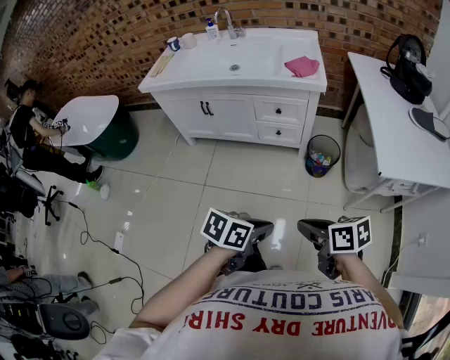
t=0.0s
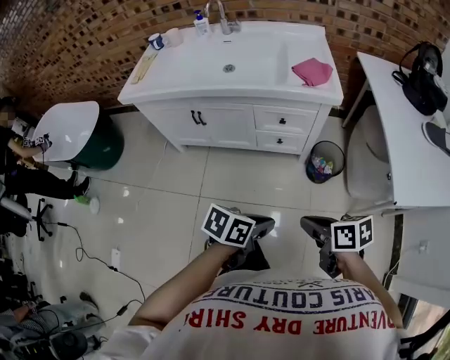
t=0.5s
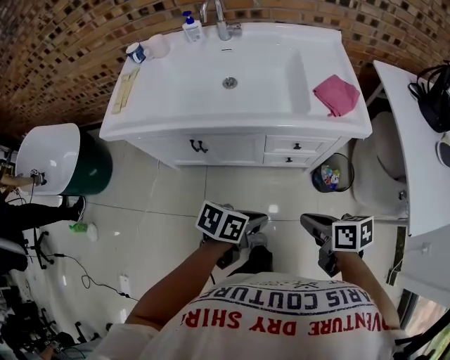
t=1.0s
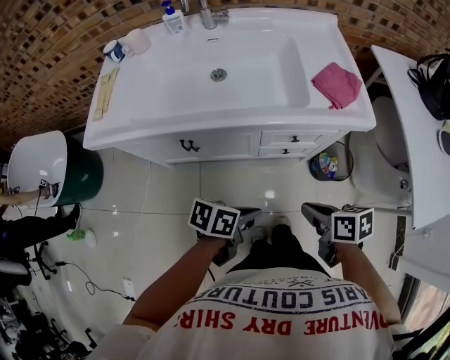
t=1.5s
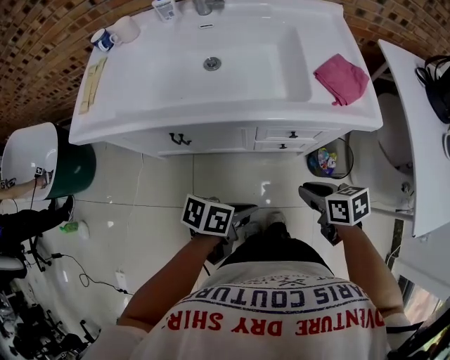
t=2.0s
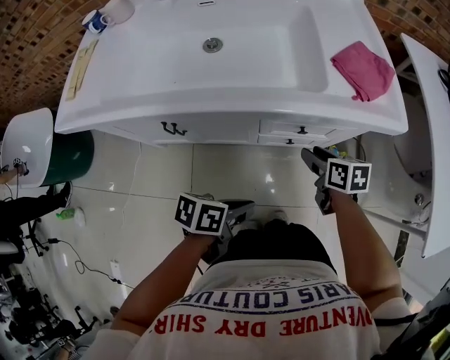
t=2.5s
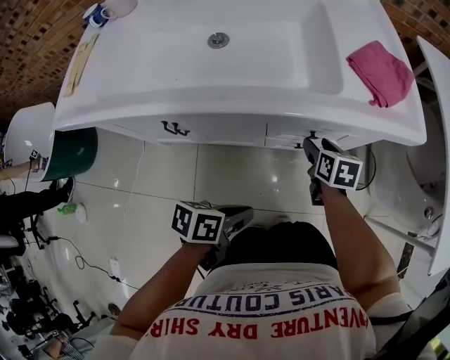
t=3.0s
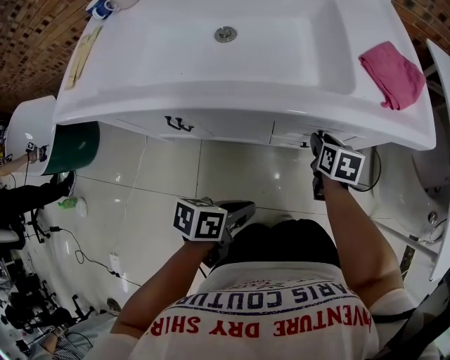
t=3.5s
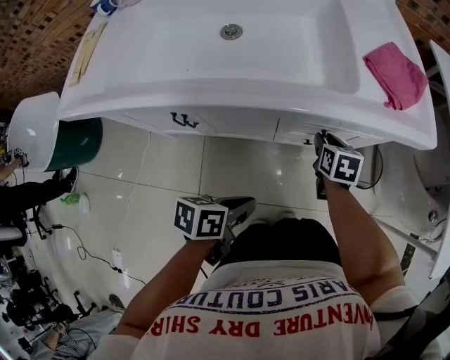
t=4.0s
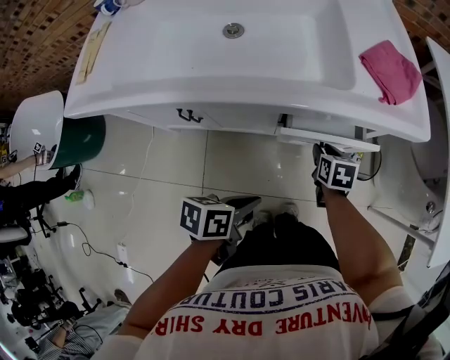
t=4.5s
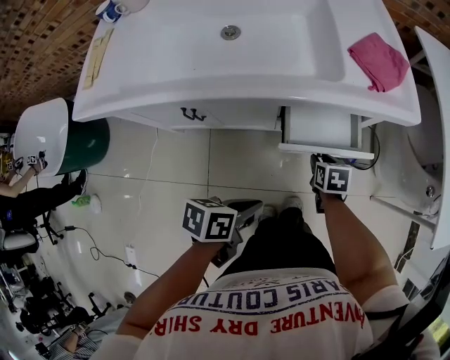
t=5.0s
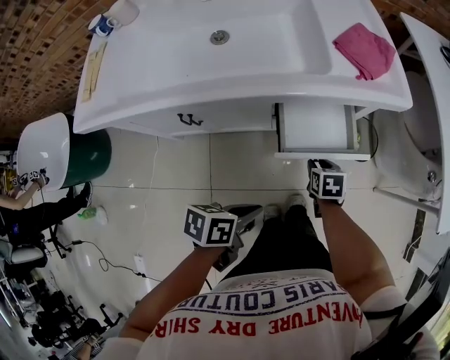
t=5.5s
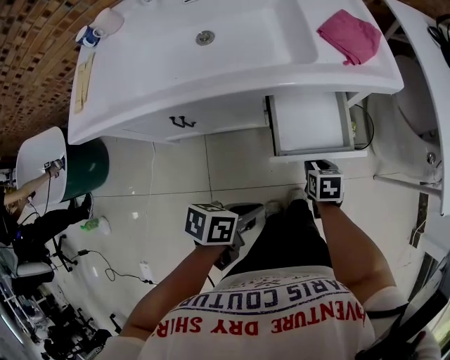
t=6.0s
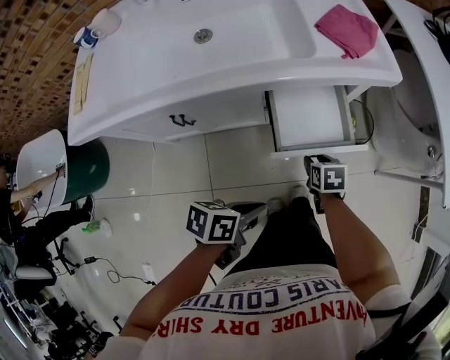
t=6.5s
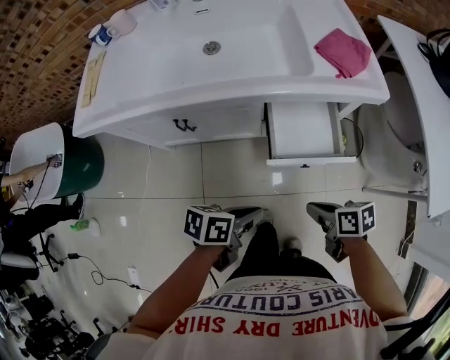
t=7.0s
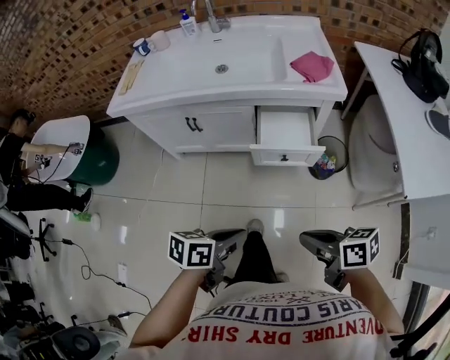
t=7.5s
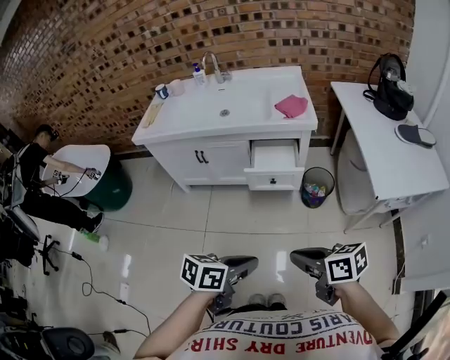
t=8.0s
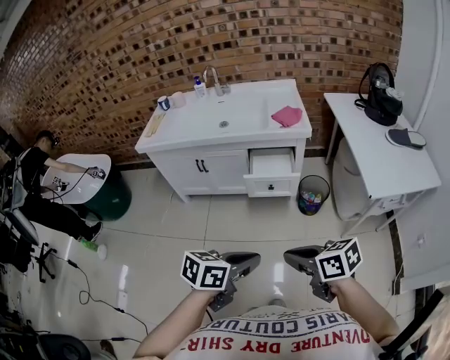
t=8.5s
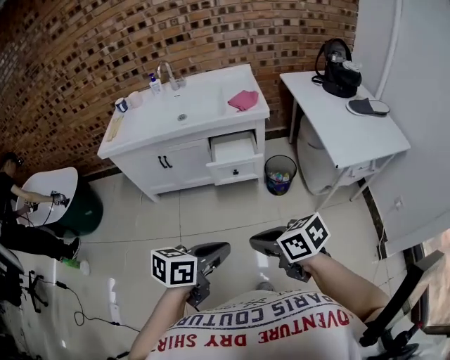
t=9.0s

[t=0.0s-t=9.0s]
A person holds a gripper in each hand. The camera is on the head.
t=0.0s to t=2.0s: The pair of grippers is taken some 50 cm.
t=2.0s to t=4.5s: The left gripper heads downward, covering approximately 5 cm. The right gripper heads downward, covering roughly 20 cm, turns by some 30 degrees, and opens and closes again.
t=4.5s to t=7.0s: The left gripper changes place by roughly 10 cm; the right gripper ends up about 25 cm from where it was, turns by some 30 degrees, and closes its fingers.
t=7.0s to t=9.0s: The right gripper shifts by approximately 50 cm, and turns by approximately 30 degrees. Meanwhile the left gripper moves some 50 cm, and turns by about 30 degrees.

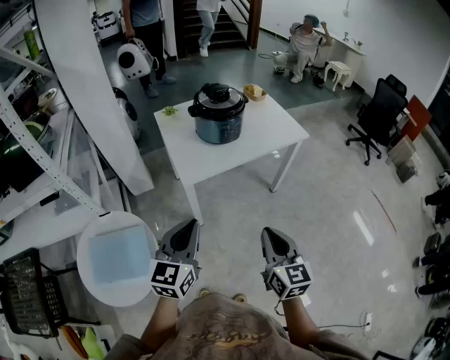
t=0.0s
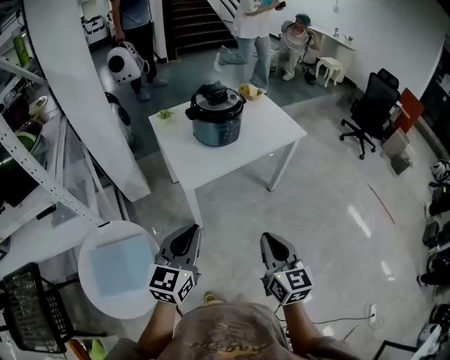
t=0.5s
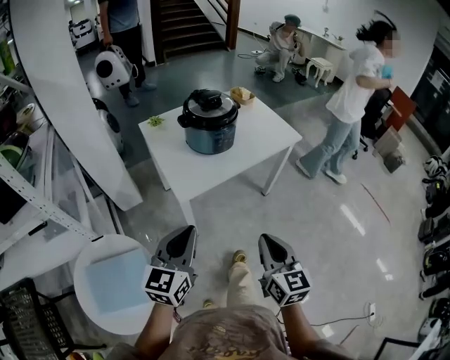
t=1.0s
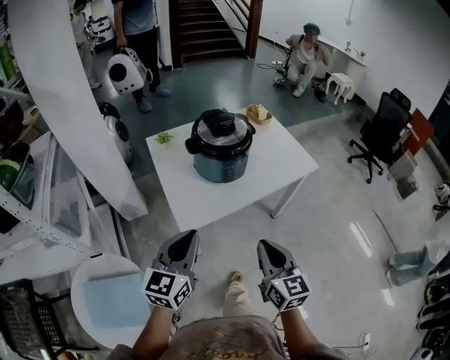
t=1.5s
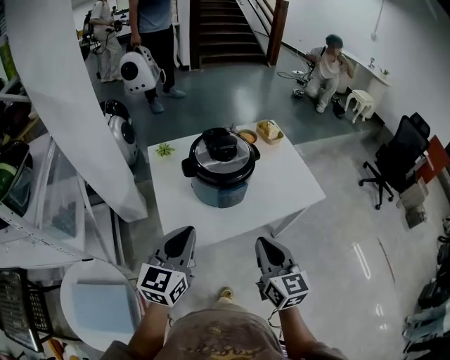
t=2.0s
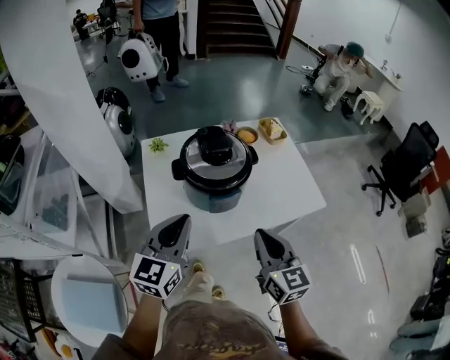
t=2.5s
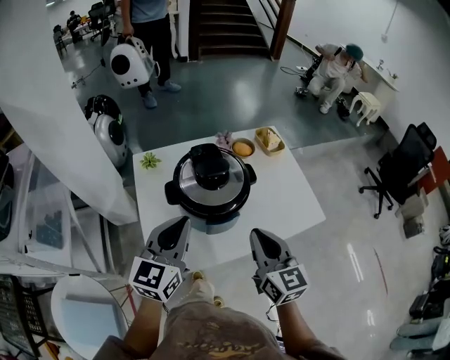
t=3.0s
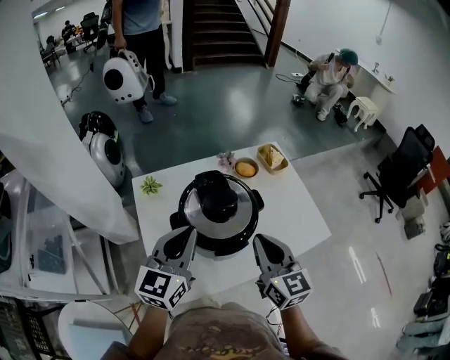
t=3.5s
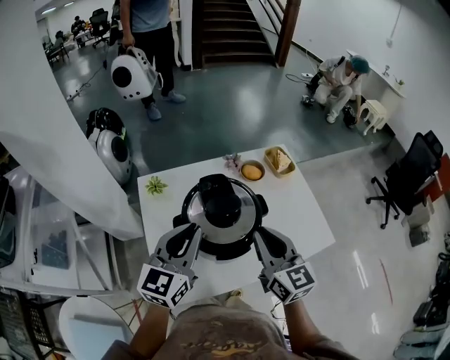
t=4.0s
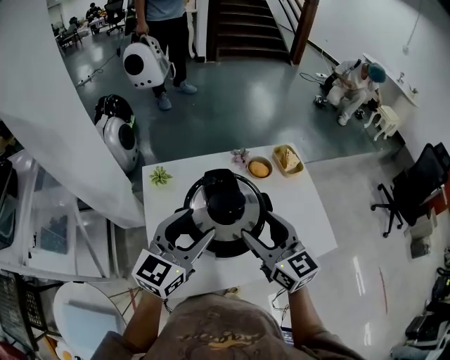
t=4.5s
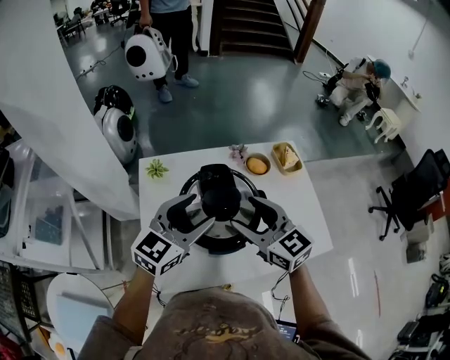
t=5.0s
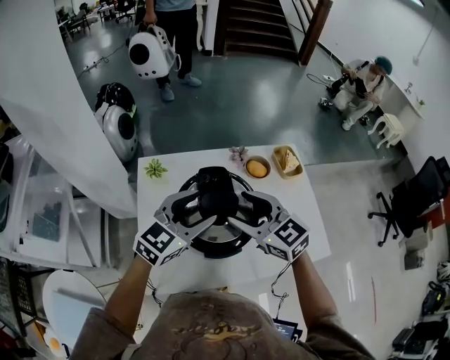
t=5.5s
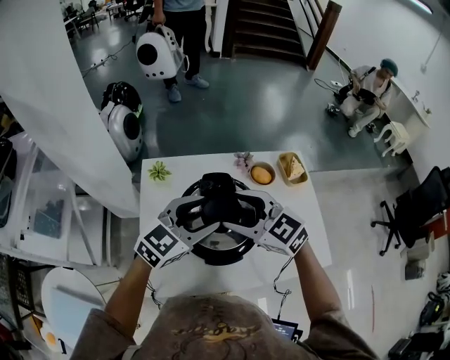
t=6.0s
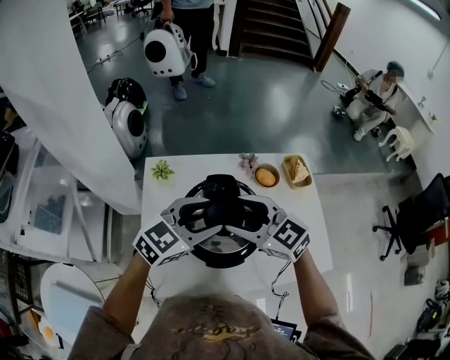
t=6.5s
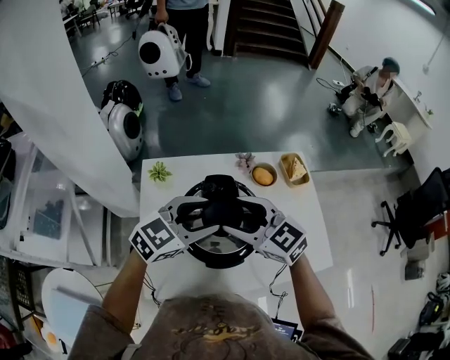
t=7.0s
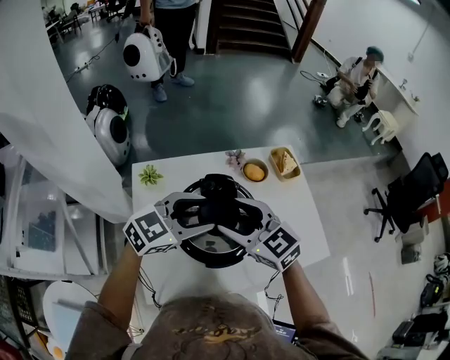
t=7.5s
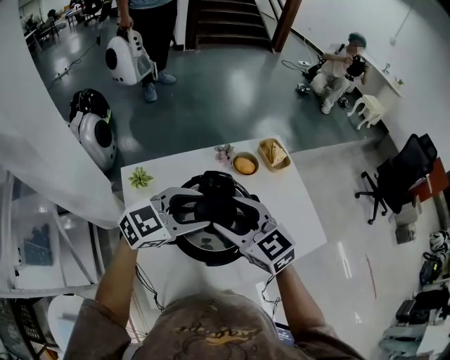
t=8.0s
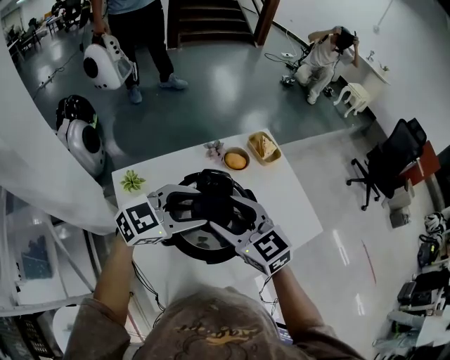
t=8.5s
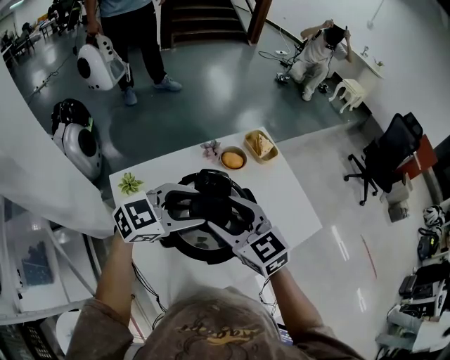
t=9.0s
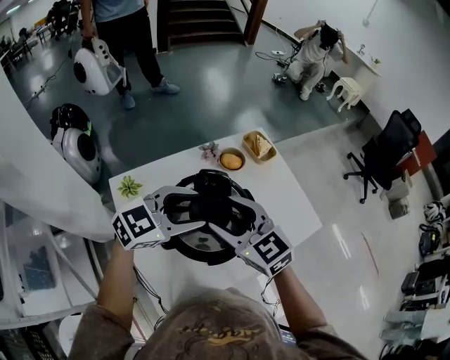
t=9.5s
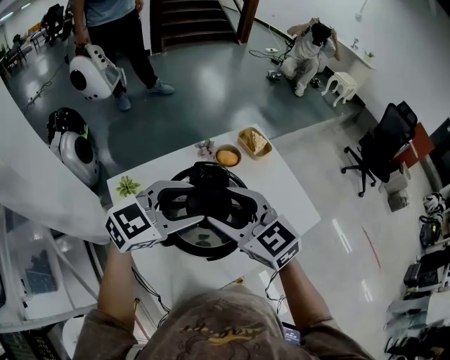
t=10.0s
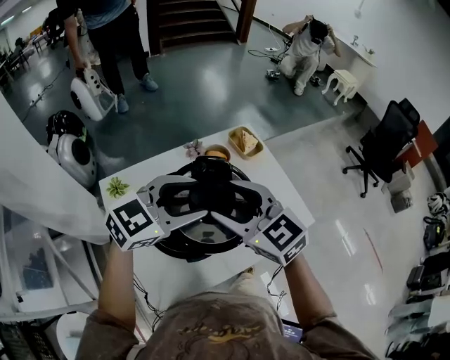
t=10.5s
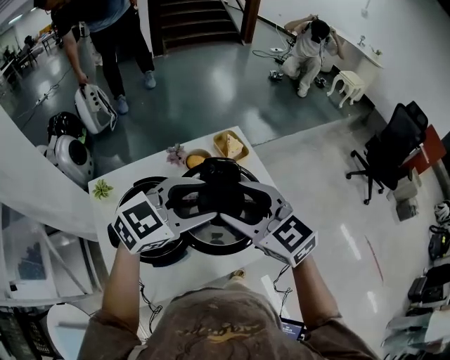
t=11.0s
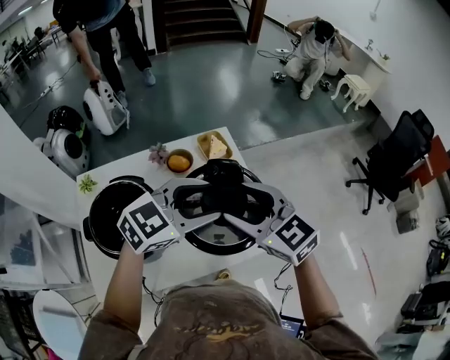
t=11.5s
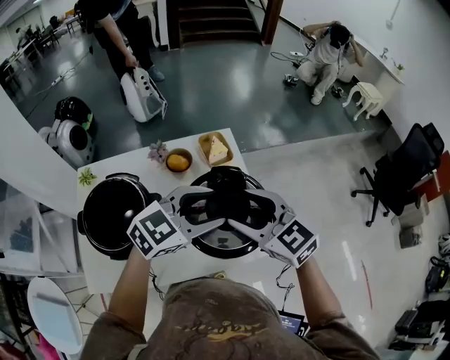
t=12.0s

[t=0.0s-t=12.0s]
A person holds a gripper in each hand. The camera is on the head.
t=0.0s to t=2.0s: Both grippers travel together forward, some 30 cm.
t=2.0s to t=4.0s: Both grippers move forward, roughly 25 cm.
t=4.0s to t=6.0s: The right gripper travels forward and to the left by roughly 10 cm, turns by approximately 50 degrees, and opens up; the left gripper goes roughly 10 cm to the right and forward, turns by approximately 20 degrees, and opens.
t=6.0s to t=8.0s: The right gripper rotates roughly 30 degrees. The left gripper changes its angle by some 30 degrees.
t=8.0s to t=10.0s: The grippers move only a little.
t=10.0s to t=12.0s: The grippers both shift to the right by about 30 cm.

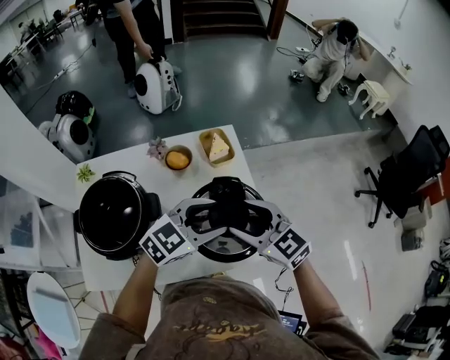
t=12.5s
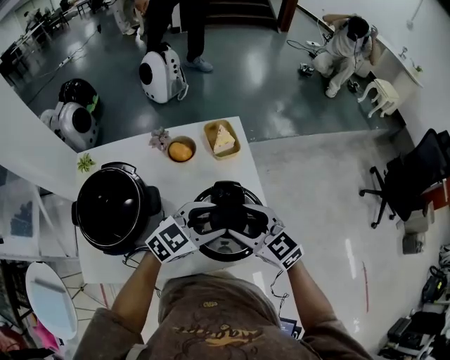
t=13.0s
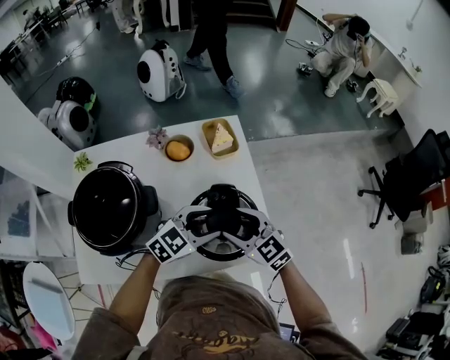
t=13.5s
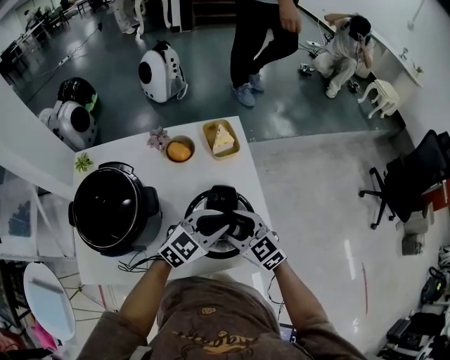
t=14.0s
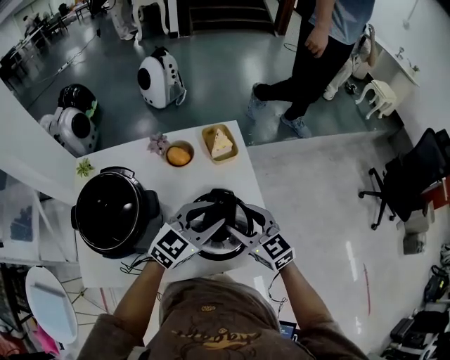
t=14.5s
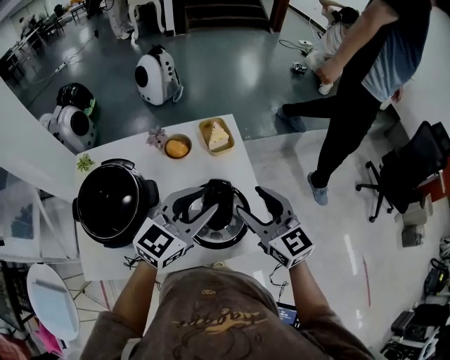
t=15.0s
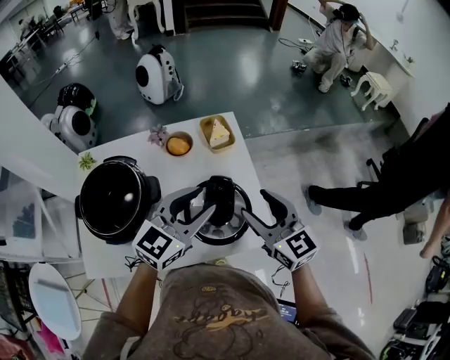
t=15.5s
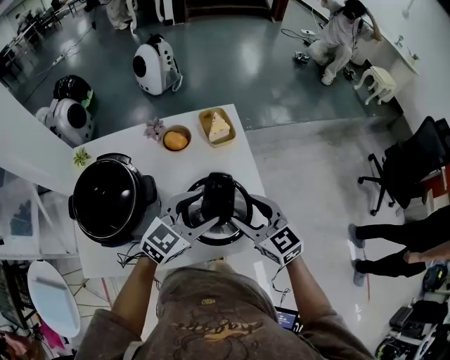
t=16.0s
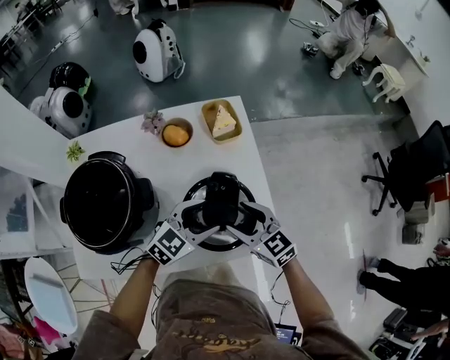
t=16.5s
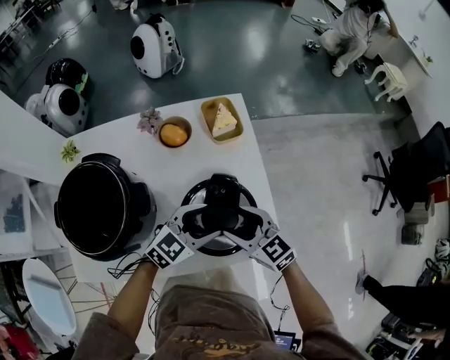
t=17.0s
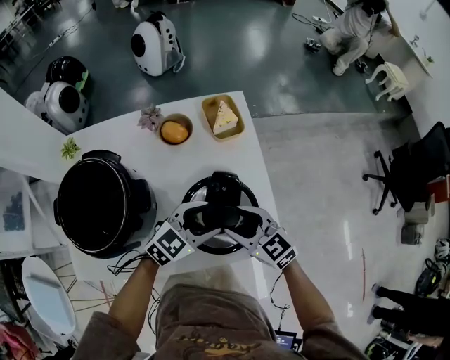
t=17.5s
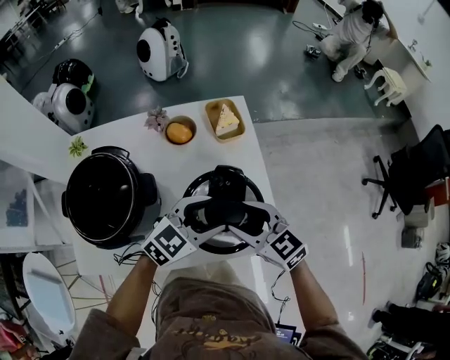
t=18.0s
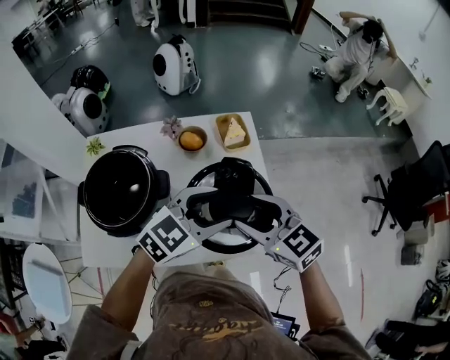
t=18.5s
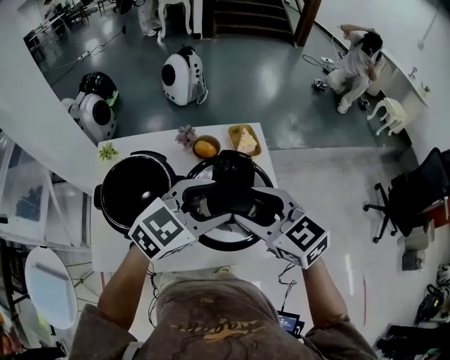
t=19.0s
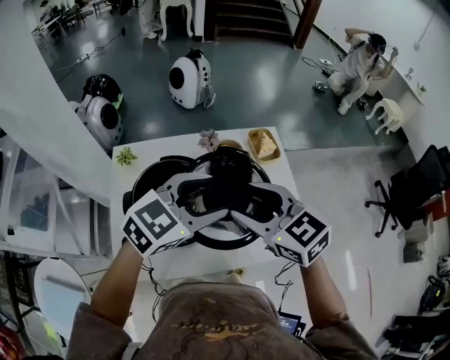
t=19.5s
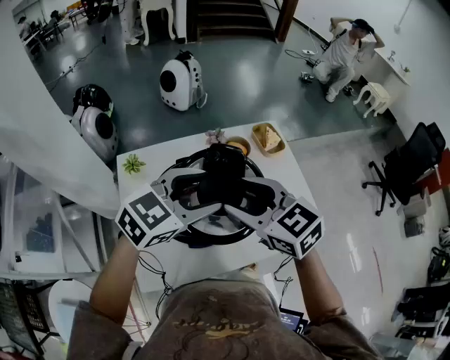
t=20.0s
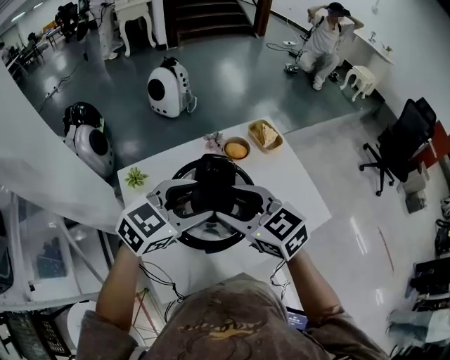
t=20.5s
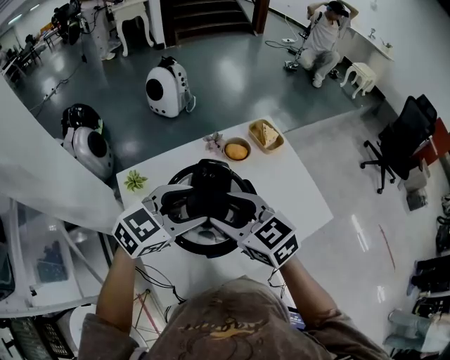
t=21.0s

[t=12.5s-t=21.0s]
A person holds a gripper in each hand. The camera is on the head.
t=12.5s to t=14.5s: The right gripper heads downward, covering roughly 10 cm.
t=14.5s to t=16.5s: The left gripper is displaced downward by approximately 10 cm, and opens its fingers; the right gripper heads downward, covering some 5 cm.
t=16.5s to t=19.0s: Both grippers travel together upward, approximately 20 cm.
t=19.0s to t=21.0s: The grippers both shift to the left by approximately 25 cm.
